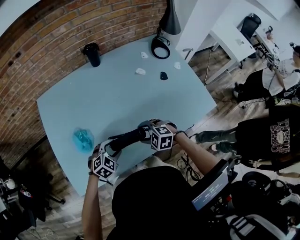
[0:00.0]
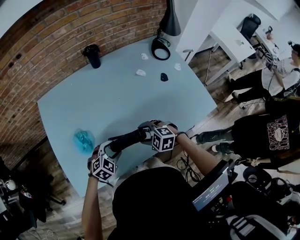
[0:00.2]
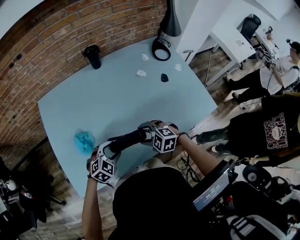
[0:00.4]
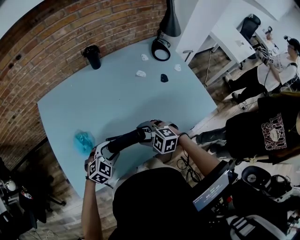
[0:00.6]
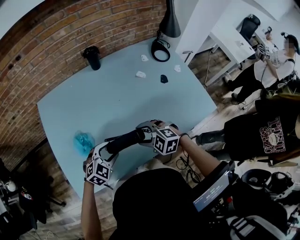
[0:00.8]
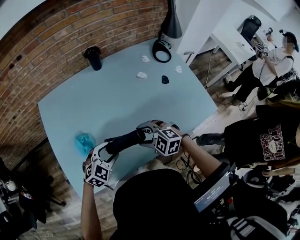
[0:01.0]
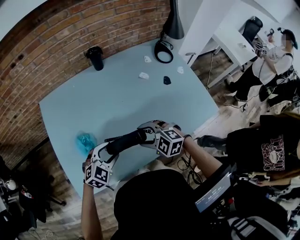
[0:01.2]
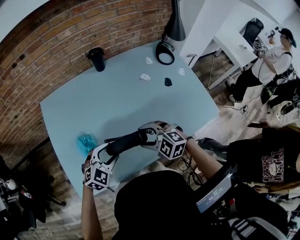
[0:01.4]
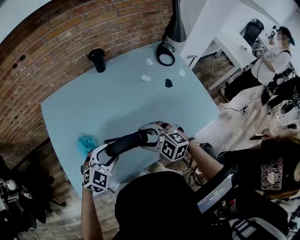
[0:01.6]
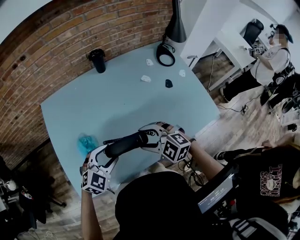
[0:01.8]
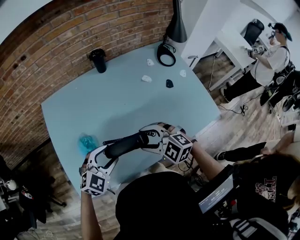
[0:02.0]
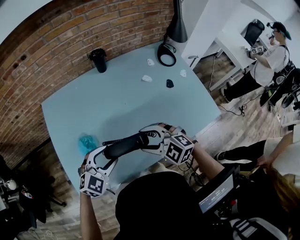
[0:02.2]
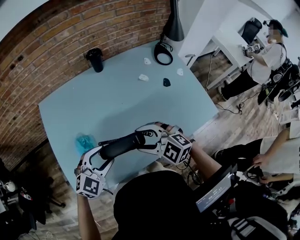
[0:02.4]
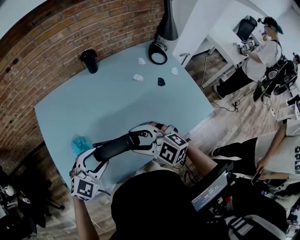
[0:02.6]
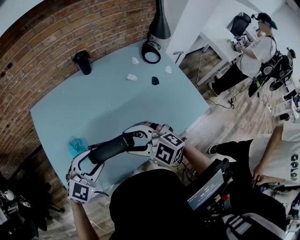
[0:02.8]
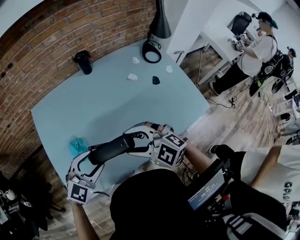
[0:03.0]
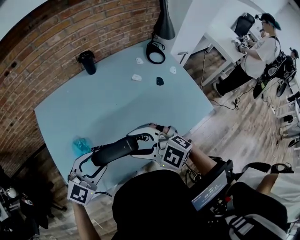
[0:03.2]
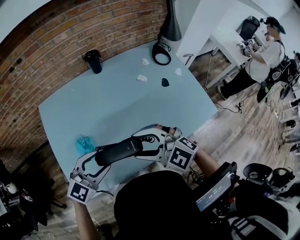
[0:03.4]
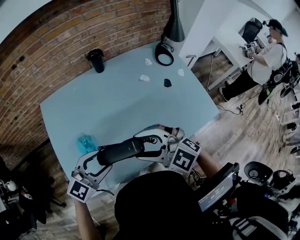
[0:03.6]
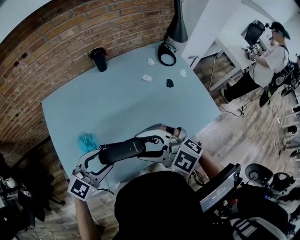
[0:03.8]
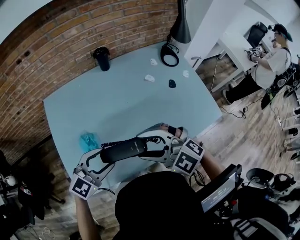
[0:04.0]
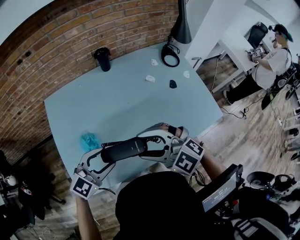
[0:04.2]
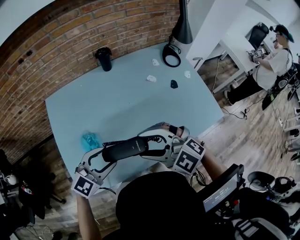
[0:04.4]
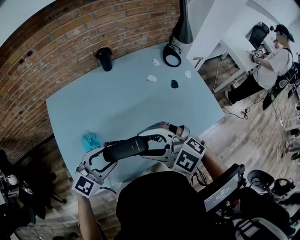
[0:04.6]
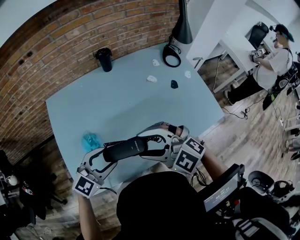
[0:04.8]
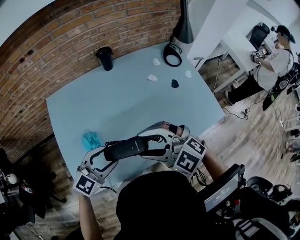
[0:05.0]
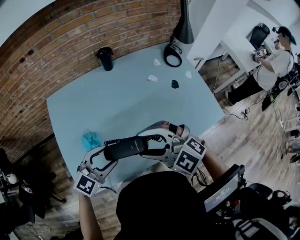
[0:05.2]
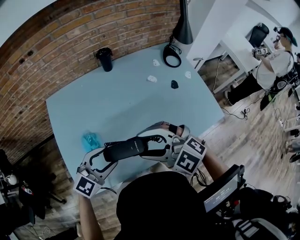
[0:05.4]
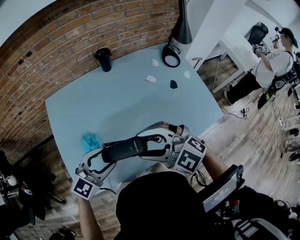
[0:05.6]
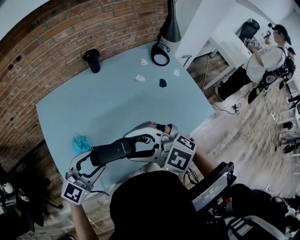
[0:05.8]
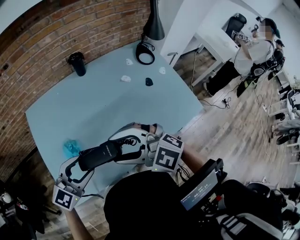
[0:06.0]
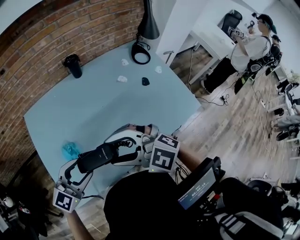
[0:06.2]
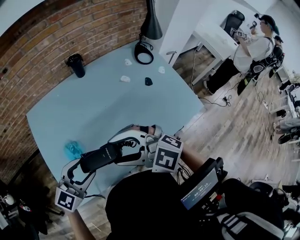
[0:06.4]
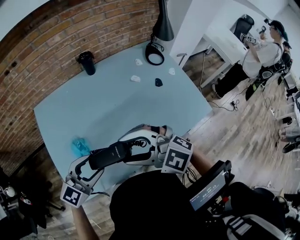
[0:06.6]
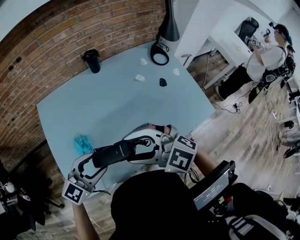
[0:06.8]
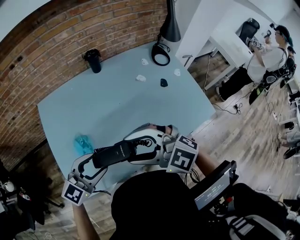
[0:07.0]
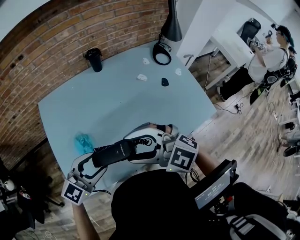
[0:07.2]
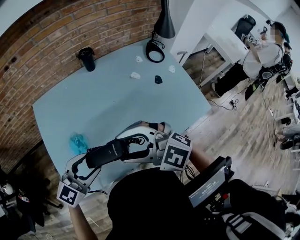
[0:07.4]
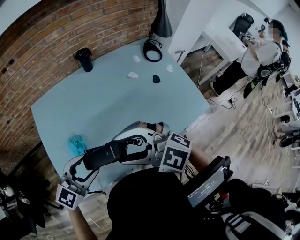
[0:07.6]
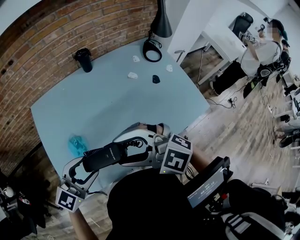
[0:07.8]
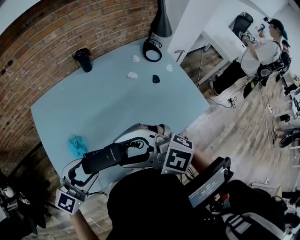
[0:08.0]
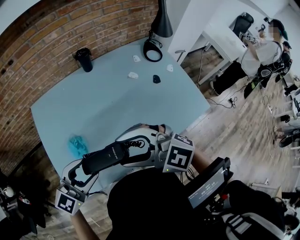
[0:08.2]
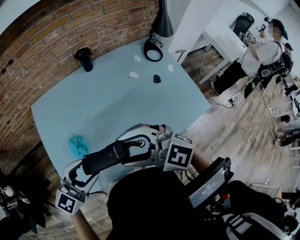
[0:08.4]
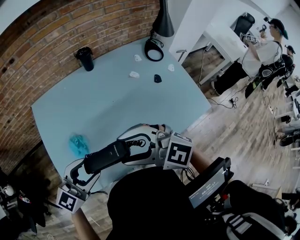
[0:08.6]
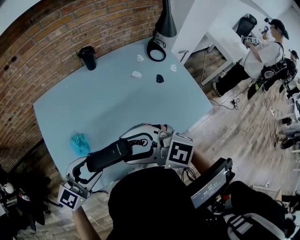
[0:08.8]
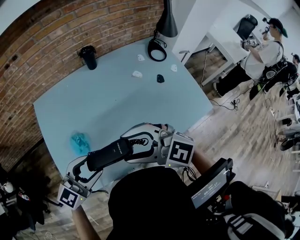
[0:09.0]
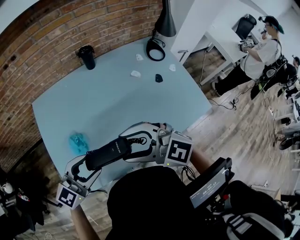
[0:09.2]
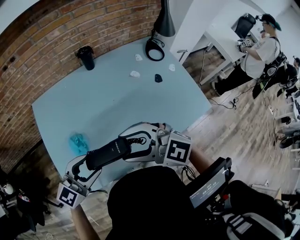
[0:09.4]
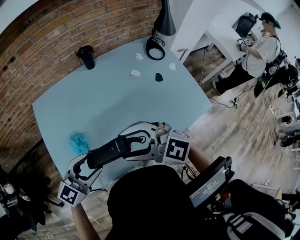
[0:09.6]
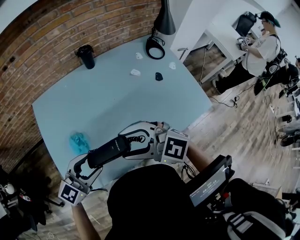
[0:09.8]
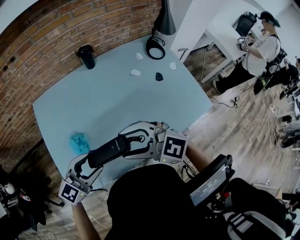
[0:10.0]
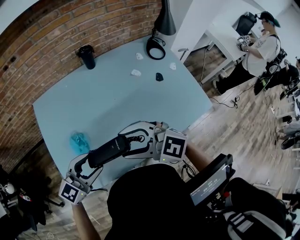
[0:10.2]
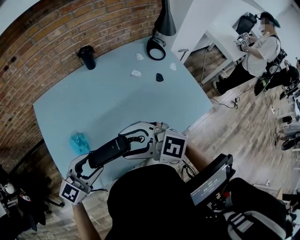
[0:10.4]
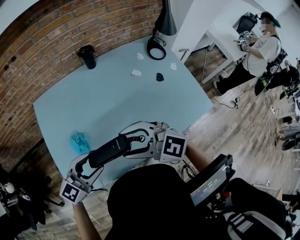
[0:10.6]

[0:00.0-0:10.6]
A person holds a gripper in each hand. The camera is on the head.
0:00.0 to 0:01.6: The two grippers go about 10 cm upward.
0:01.6 to 0:03.0: Both grippers travel together upward, some 10 cm.
0:03.0 to 0:04.6: The grippers move only a little.
0:04.6 to 0:07.6: There are only small adjustments of the grippers.
0:07.6 to 0:10.6: The grippers move only a little.

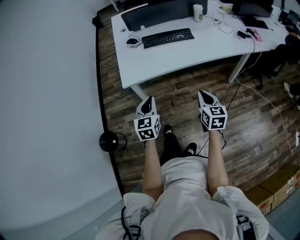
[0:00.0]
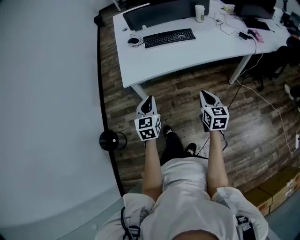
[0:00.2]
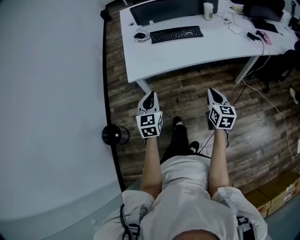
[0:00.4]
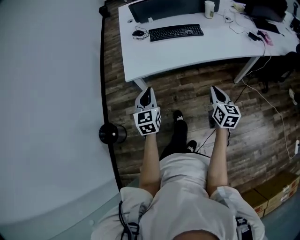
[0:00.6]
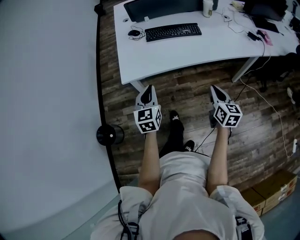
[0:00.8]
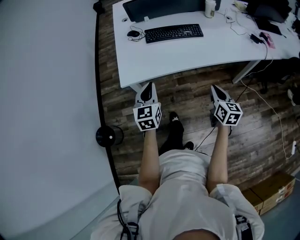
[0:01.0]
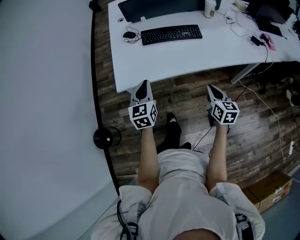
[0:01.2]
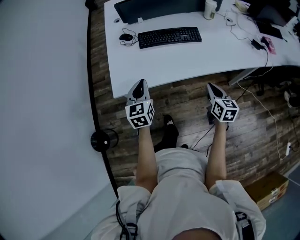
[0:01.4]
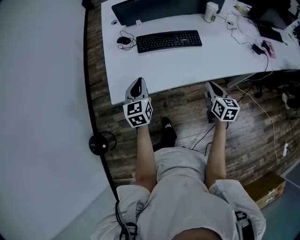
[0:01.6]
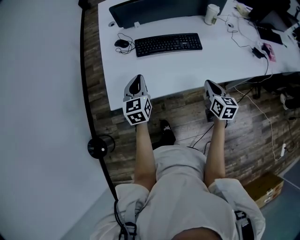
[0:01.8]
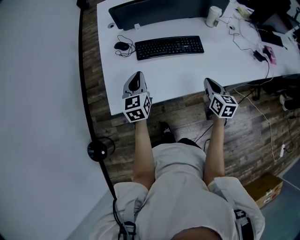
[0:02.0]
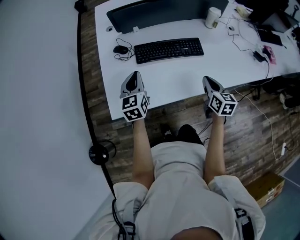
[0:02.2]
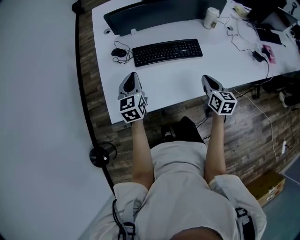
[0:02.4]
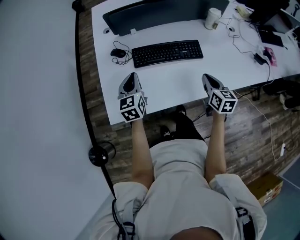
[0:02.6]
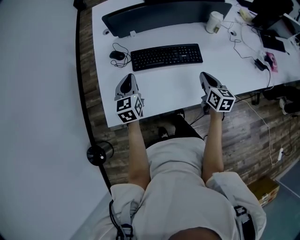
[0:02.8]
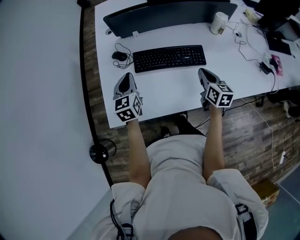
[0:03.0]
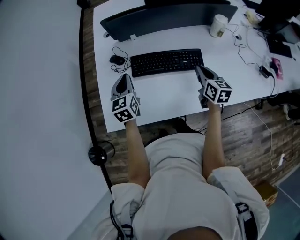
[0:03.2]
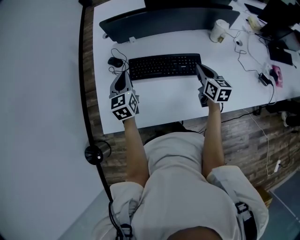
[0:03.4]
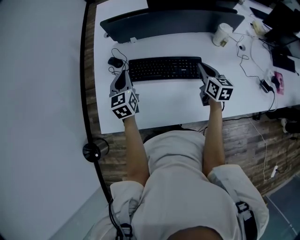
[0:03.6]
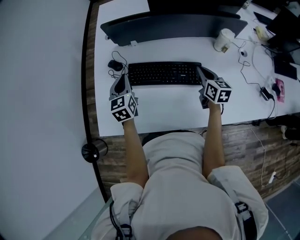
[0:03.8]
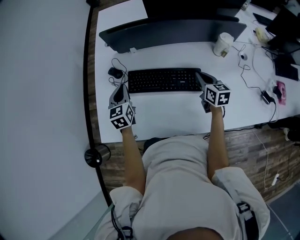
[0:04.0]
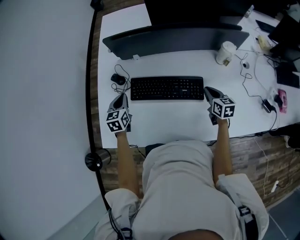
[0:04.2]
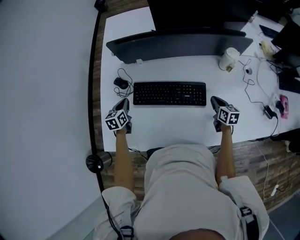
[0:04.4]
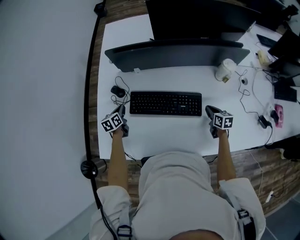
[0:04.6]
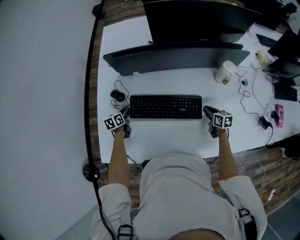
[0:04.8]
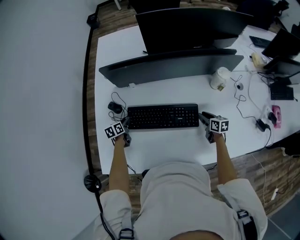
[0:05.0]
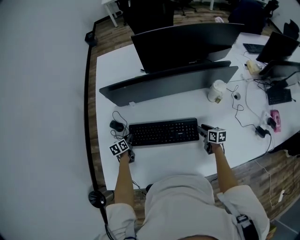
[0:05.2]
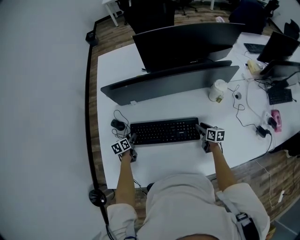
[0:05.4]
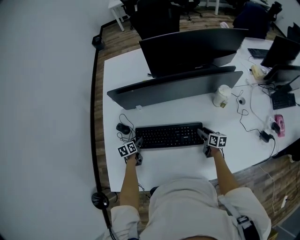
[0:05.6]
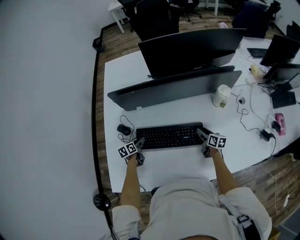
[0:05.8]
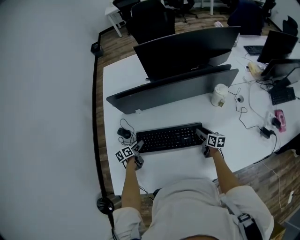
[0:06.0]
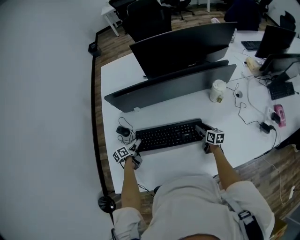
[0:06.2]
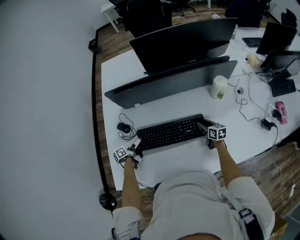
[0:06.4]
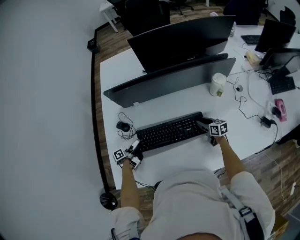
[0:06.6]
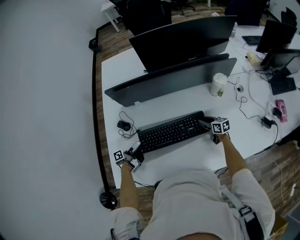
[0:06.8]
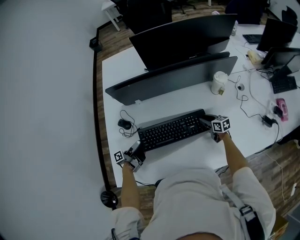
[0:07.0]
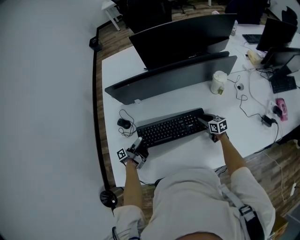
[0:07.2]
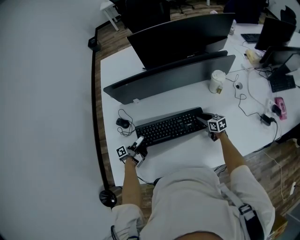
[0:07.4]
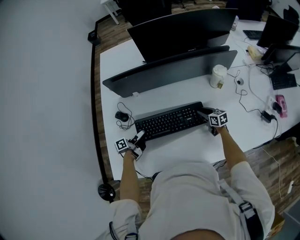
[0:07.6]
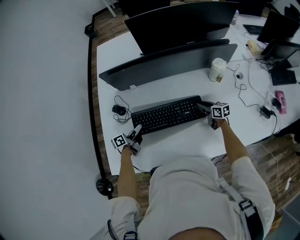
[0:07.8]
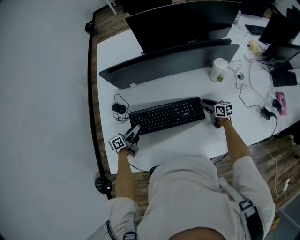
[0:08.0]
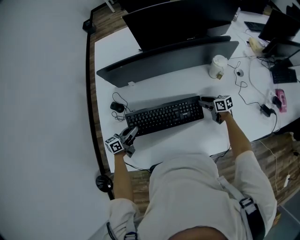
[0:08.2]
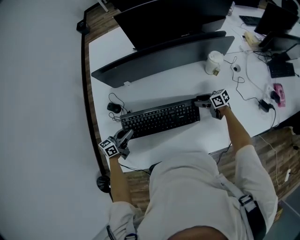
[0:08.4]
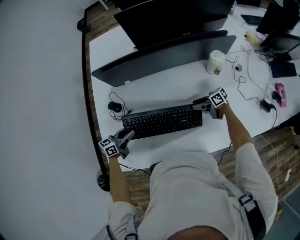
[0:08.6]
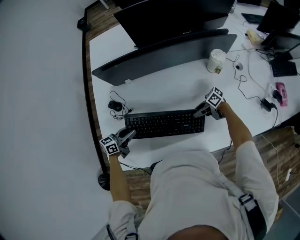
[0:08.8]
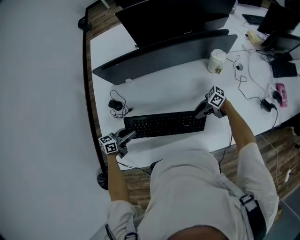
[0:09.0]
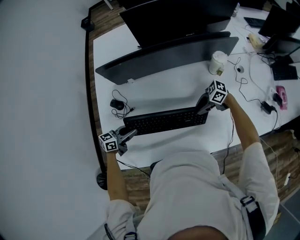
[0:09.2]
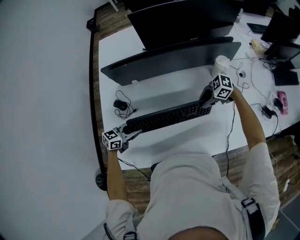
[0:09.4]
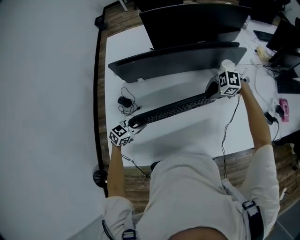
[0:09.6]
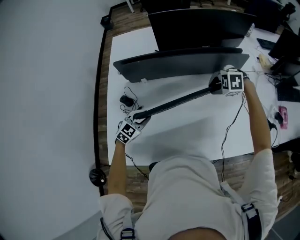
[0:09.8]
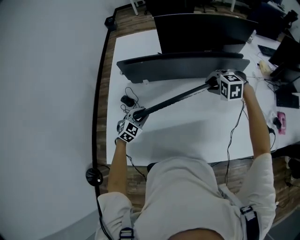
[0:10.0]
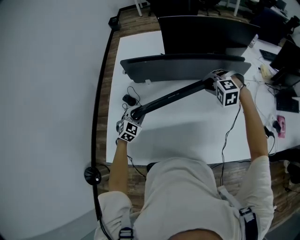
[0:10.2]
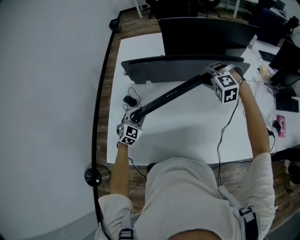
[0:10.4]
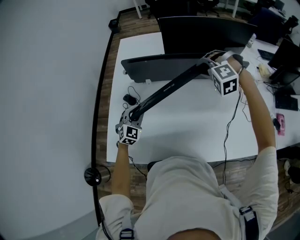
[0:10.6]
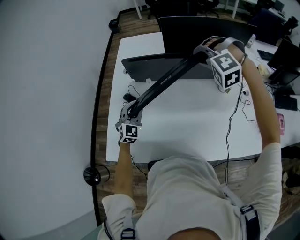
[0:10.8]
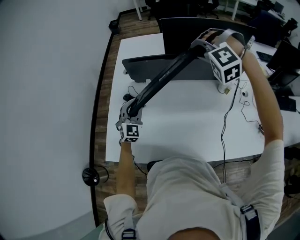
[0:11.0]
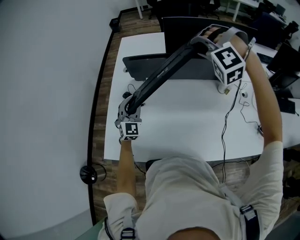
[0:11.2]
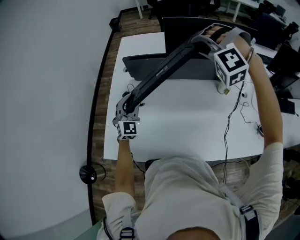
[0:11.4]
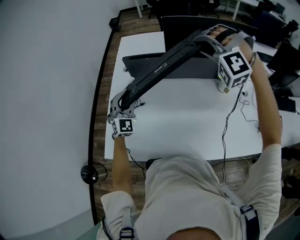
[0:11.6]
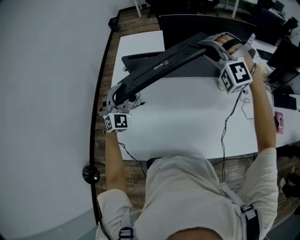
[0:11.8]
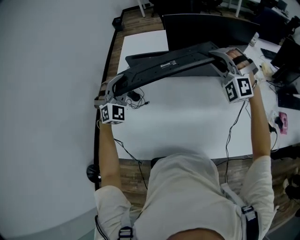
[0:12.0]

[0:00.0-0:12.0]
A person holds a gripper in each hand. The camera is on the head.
0:00.0 to 0:01.6: The two grippers go about 30 cm forward.
0:01.6 to 0:03.0: The two grippers go roughly 25 cm forward.
0:03.0 to 0:04.4: The right gripper shifts approximately 20 cm to the right, downward and forward. The left gripper is displaced downward and forward by approximately 15 cm, and changes its angle by about 20 degrees.
0:04.4 to 0:06.0: The right gripper heads forward and downward, covering roughly 10 cm, and opens its fingers. The left gripper moves downward, some 10 cm, swivels roughly 30 degrees, and opens up.
0:06.0 to 0:07.6: The left gripper goes approximately 5 cm backward, swivels approximately 30 degrees, and closes. The right gripper turns by approximately 20 degrees.
0:07.6 to 0:09.0: The left gripper is displaced upward by approximately 5 cm, and rolls clockwise, seen from behind, by some 50 degrees, while the right gripper ends up some 15 cm from where it was, and turns by approximately 60 degrees.
0:09.0 to 0:10.4: The right gripper goes some 25 cm upward, and tips its fingers downward by roughly 40 degrees. The left gripper moves upward, some 5 cm, and twists about 60 degrees clockwise, seen from behind.
0:10.4 to 0:12.0: The left gripper moves upward, approximately 20 cm, and changes its angle by roughly 40 degrees. Meanwhile the right gripper shifts about 15 cm upward, and tilts its fingers some 40 degrees upward.

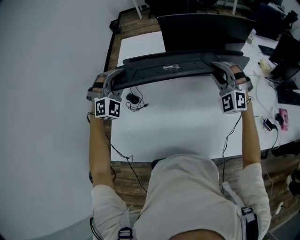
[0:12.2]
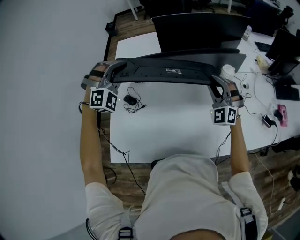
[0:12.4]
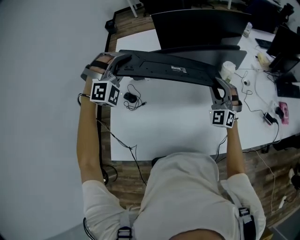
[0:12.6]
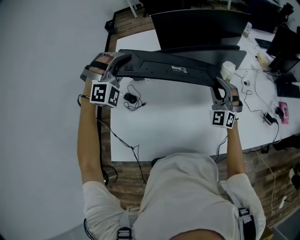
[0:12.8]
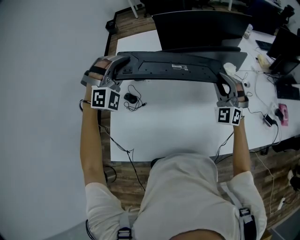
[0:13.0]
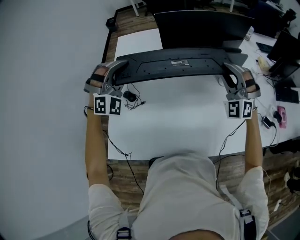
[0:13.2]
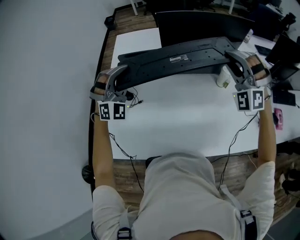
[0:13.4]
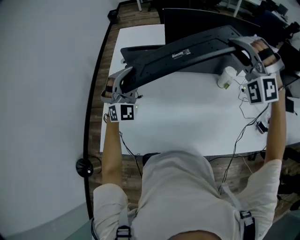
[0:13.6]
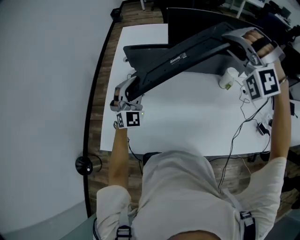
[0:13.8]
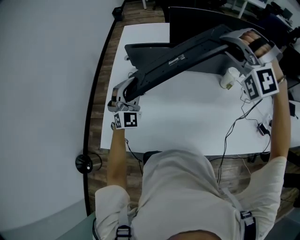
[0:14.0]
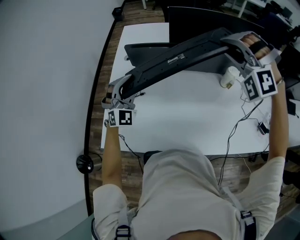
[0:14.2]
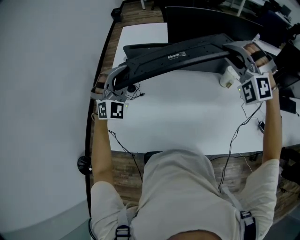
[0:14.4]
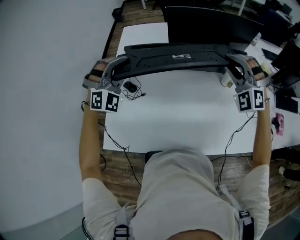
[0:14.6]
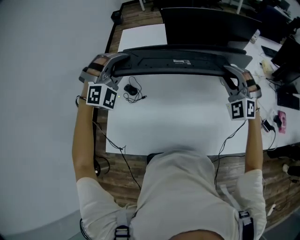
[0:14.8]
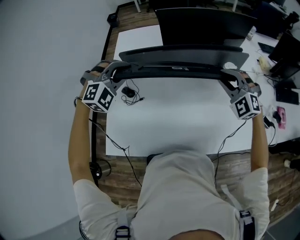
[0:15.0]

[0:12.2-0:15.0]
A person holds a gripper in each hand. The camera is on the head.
0:12.2 to 0:13.6: The left gripper rotates some 30 degrees; the right gripper is displaced upward by about 15 cm, and changes its angle by about 30 degrees.
0:13.6 to 0:15.0: The left gripper moves up and down over roughly 10 cm, changing direction 2 times, and angles its fingers downward, by roughly 40 degrees; the right gripper travels downward by some 15 cm, and swivels approximately 40 degrees.
